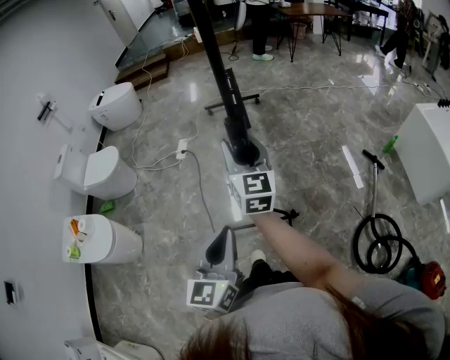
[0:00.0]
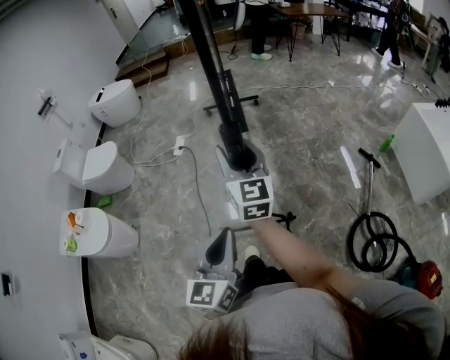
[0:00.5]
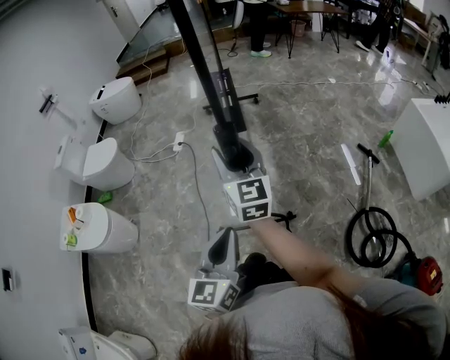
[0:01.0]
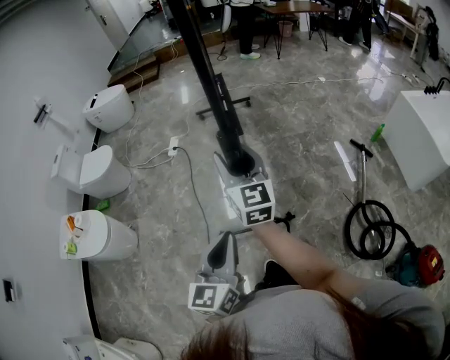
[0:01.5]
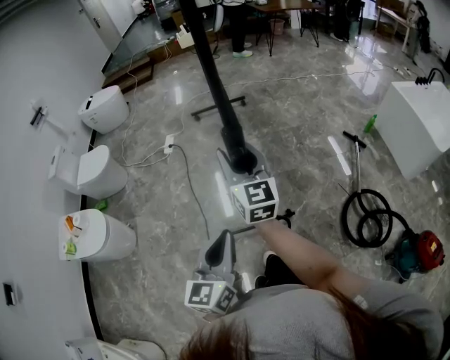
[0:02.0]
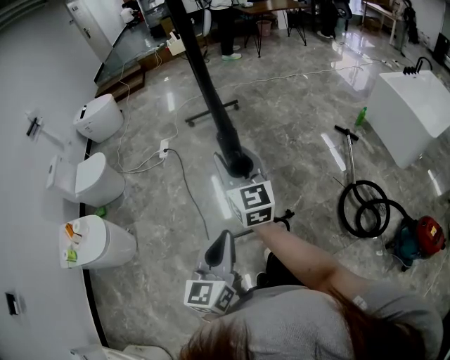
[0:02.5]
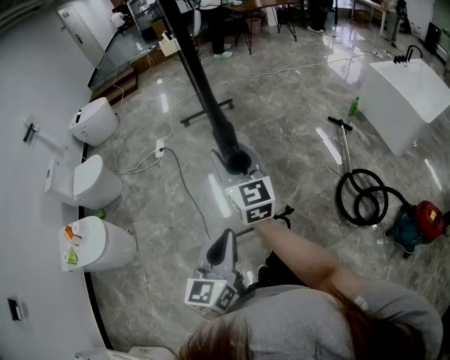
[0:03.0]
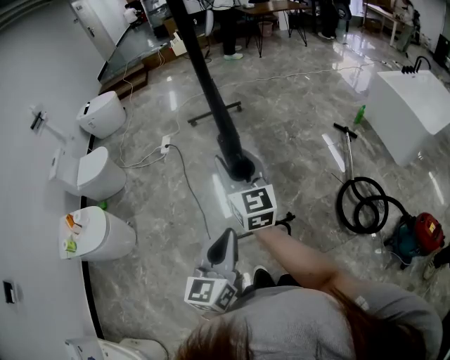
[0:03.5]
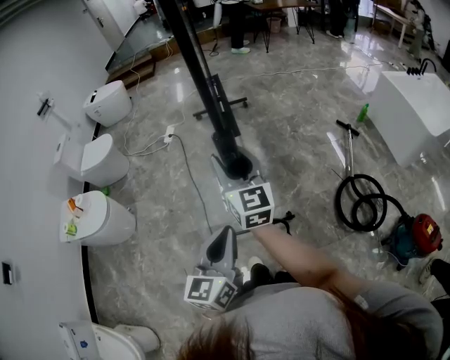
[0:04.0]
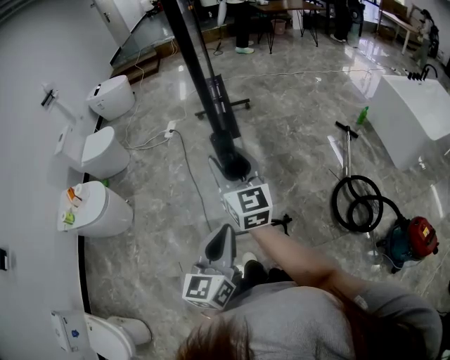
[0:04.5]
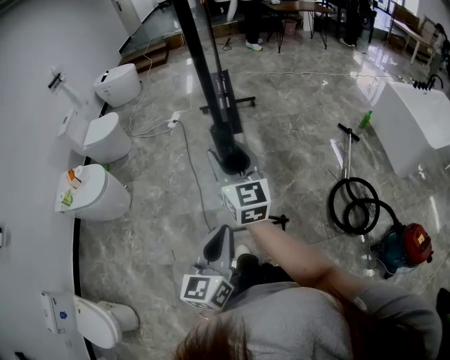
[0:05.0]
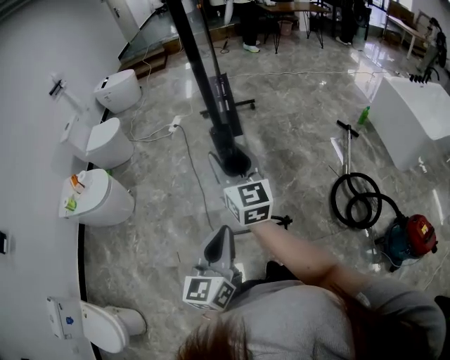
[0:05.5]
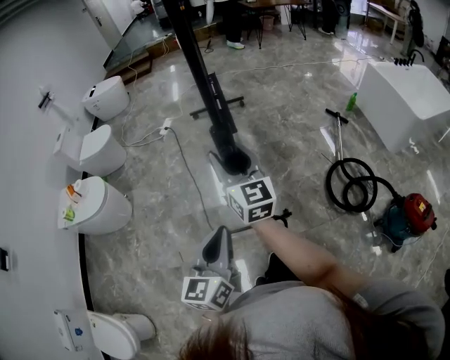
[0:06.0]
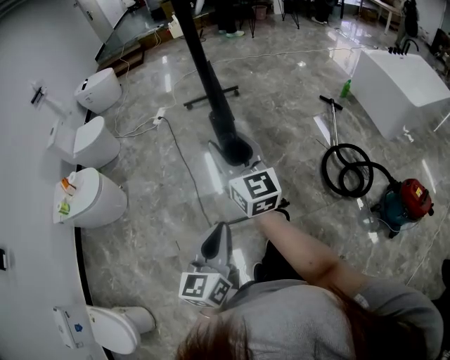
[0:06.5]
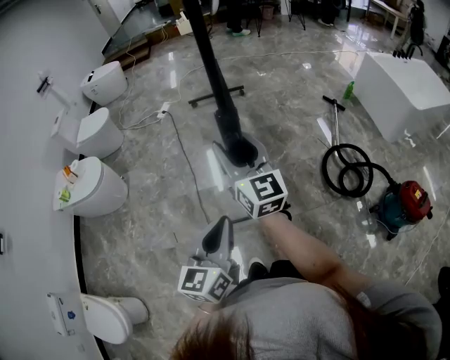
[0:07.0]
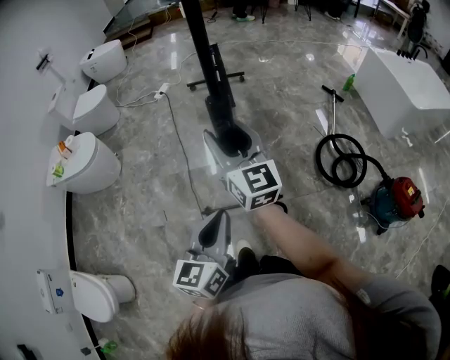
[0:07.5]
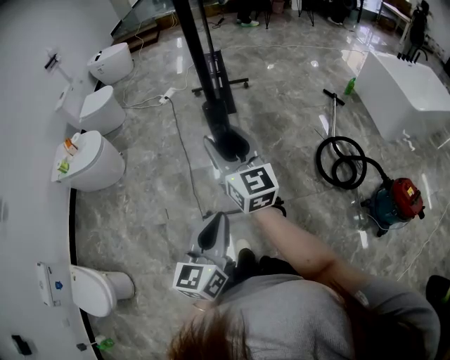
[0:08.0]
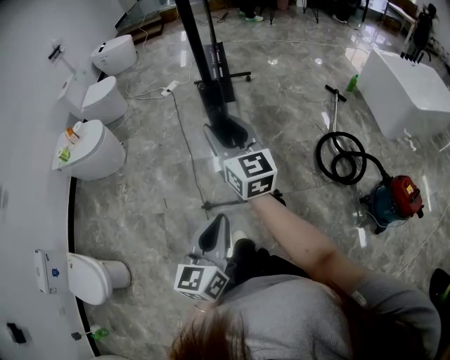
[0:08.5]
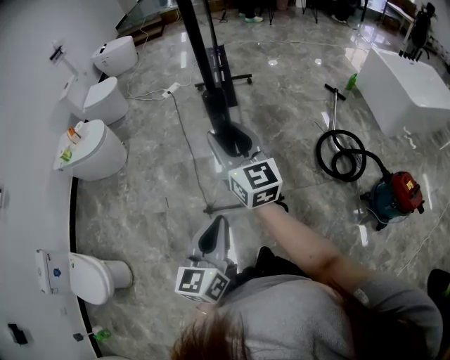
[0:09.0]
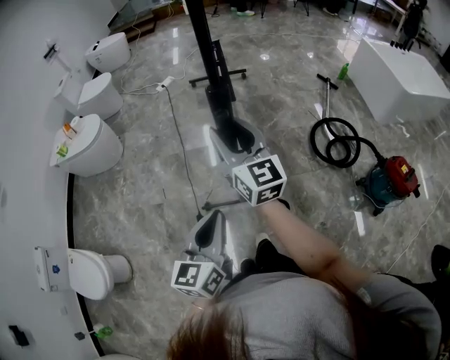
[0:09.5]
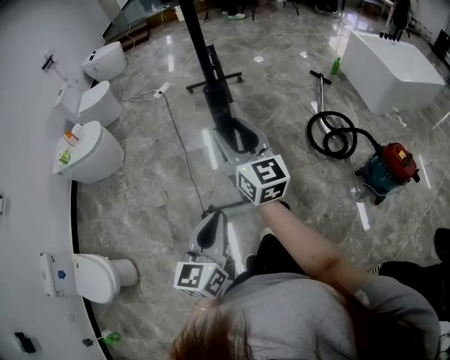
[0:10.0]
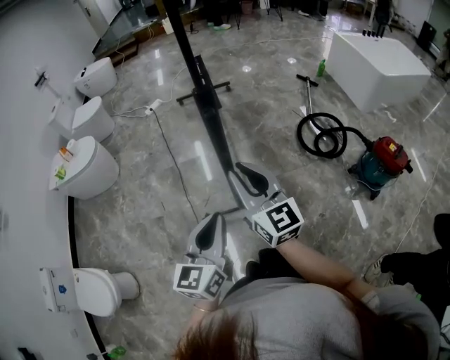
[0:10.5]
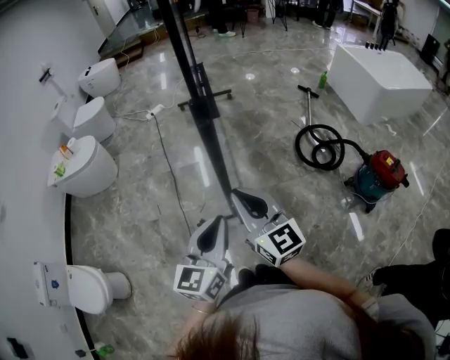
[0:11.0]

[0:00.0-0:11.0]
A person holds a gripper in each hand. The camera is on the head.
0:00.0 to 0:02.0: Both grippers travel together backward, some 15 cm.
0:02.0 to 0:03.5: The two grippers go some 10 cm backward.
0:03.5 to 0:05.5: Both grippers move backward, roughly 15 cm.
0:05.5 to 0:07.5: Both grippers travel together backward, some 15 cm.
0:07.5 to 0:09.0: Both grippers move backward, about 10 cm.
0:09.0 to 0:11.0: The right gripper is displaced backward by some 25 cm, and closes, while the left gripper heads backward, covering approximately 10 cm.

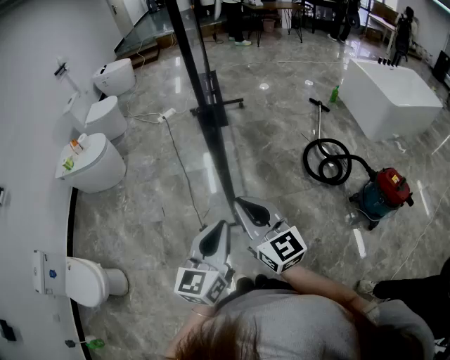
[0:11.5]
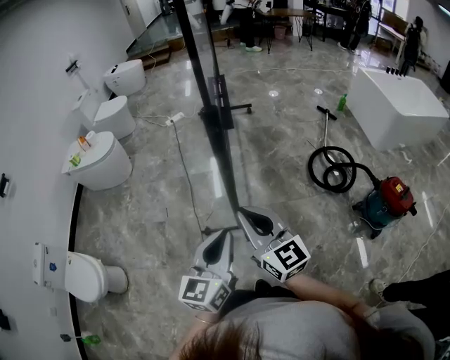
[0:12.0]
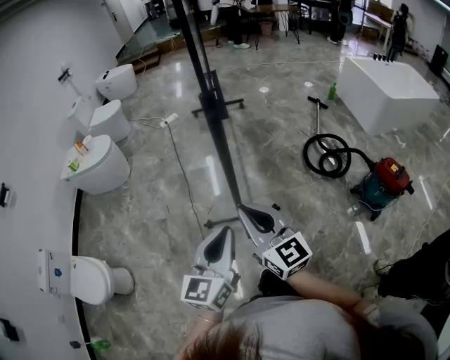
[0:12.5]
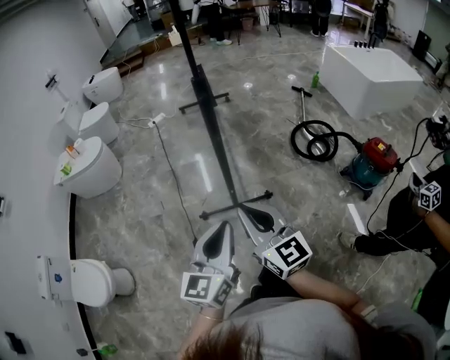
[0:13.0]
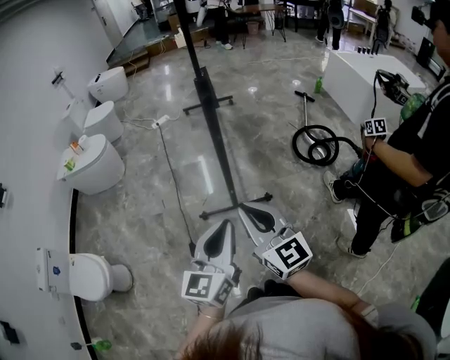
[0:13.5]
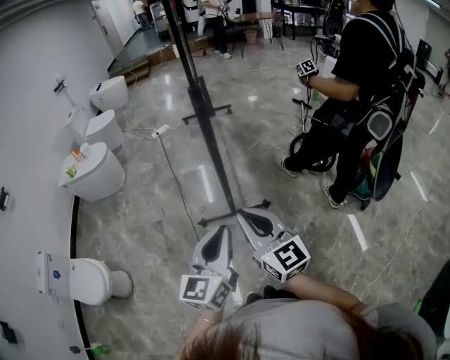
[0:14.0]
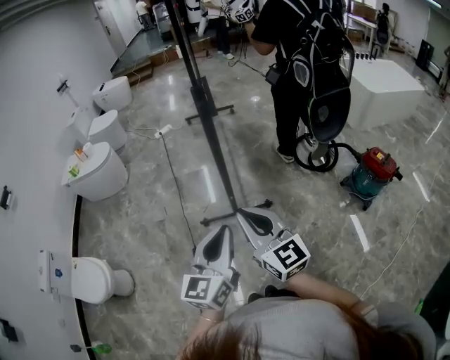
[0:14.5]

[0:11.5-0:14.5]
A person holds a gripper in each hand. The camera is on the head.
0:11.5 to 0:13.0: The grippers both shift backward by about 15 cm.
0:13.0 to 0:14.5: The grippers move only a little.

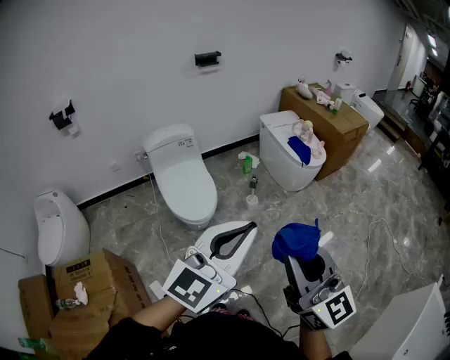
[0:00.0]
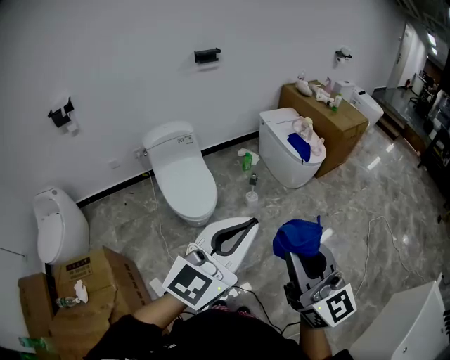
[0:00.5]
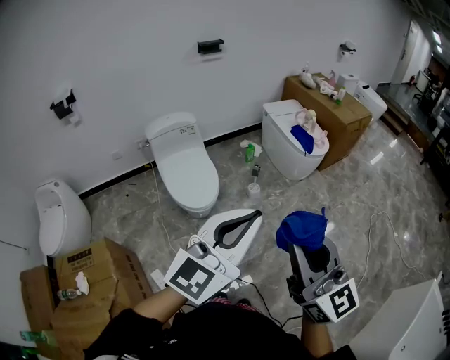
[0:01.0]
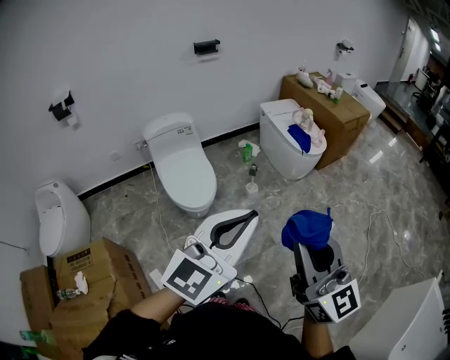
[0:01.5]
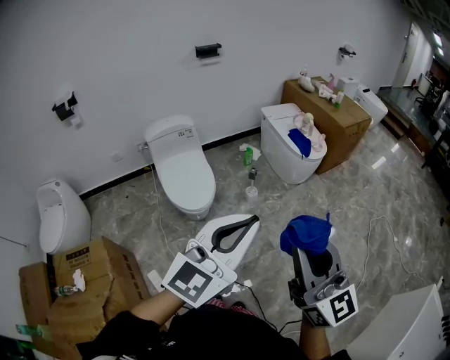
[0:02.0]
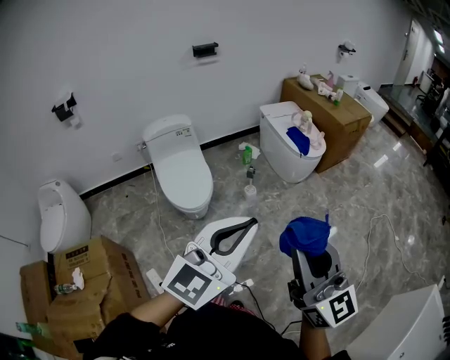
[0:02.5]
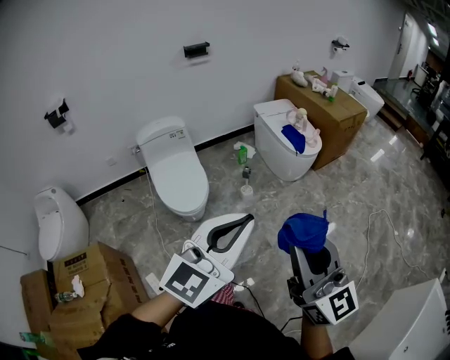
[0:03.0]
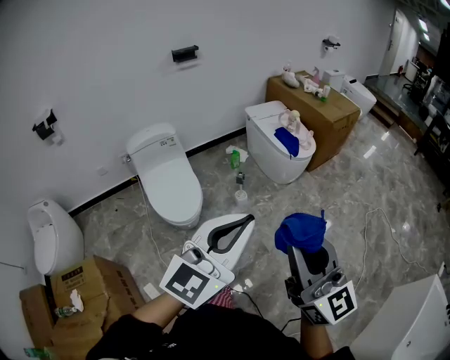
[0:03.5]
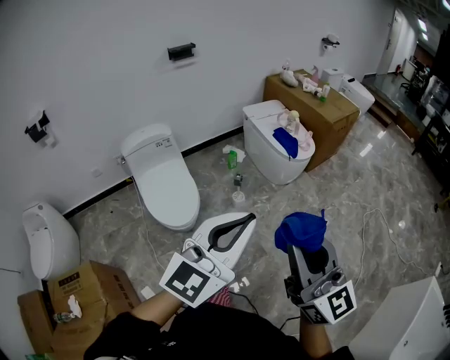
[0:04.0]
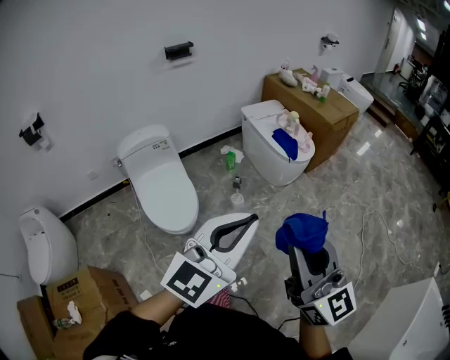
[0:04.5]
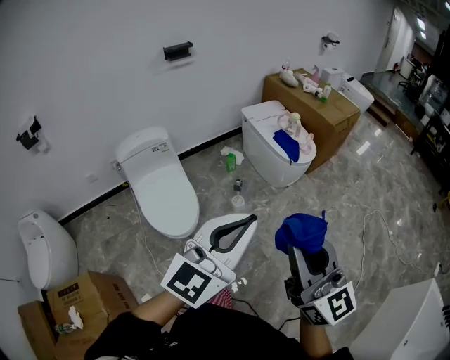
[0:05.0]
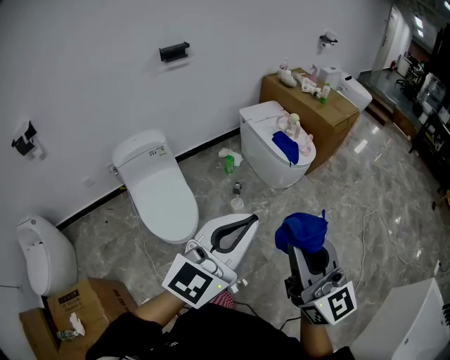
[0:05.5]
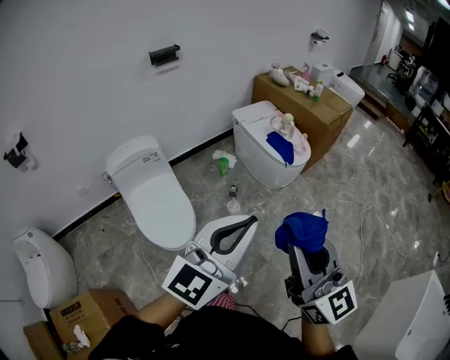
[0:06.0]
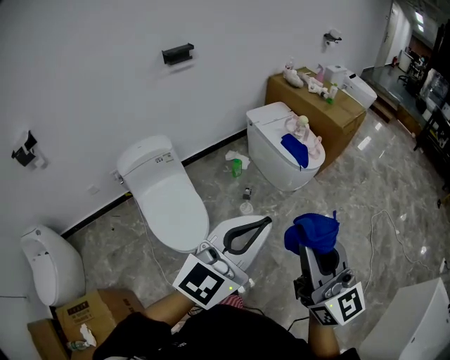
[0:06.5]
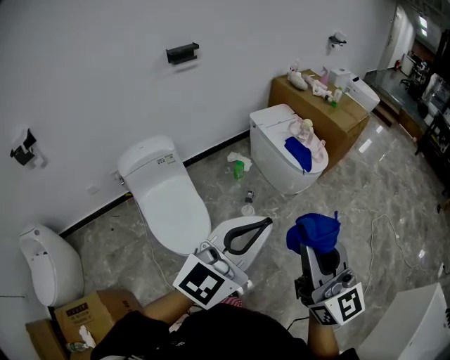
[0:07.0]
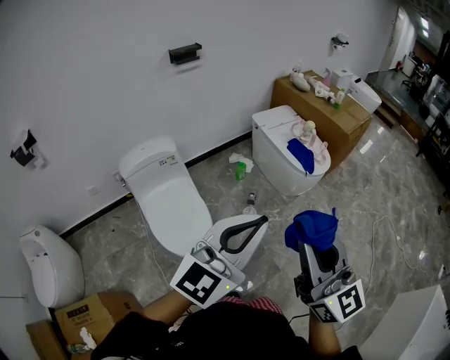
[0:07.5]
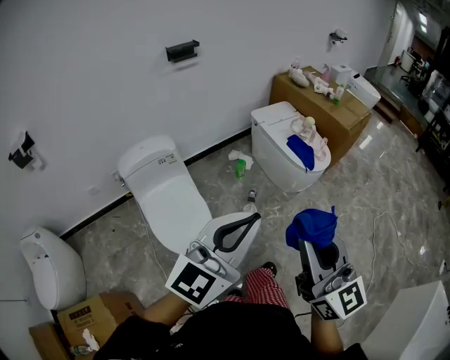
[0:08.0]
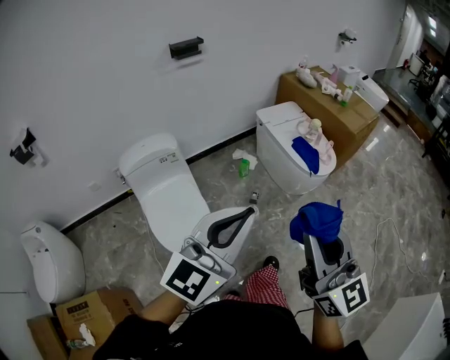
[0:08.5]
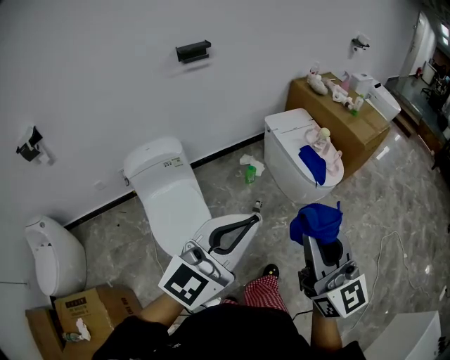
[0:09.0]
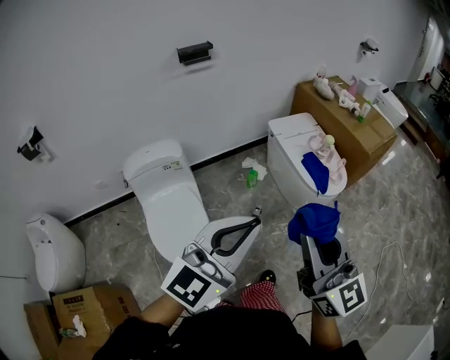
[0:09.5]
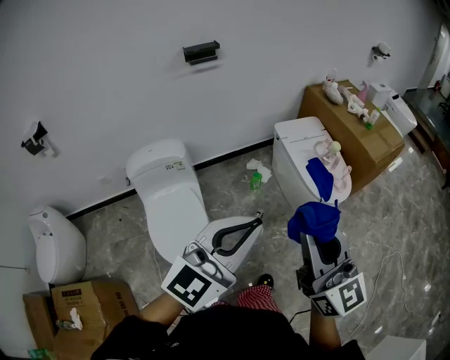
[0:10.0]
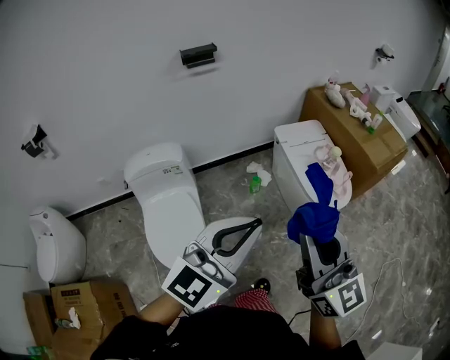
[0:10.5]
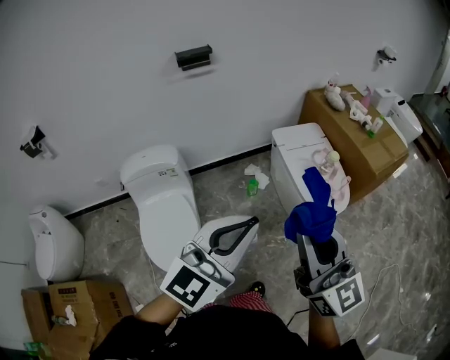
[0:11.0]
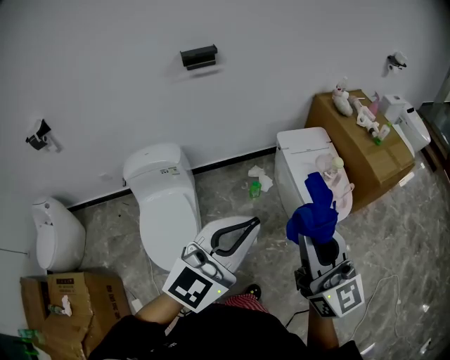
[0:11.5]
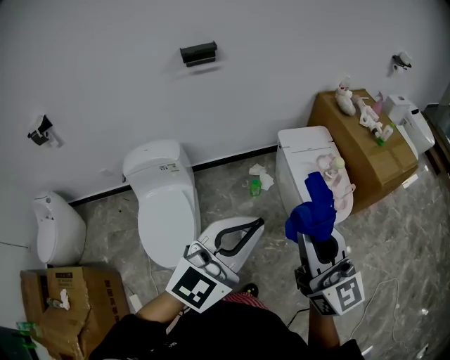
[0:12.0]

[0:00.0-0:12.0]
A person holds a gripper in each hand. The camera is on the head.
0:00.0 to 0:02.0: The right gripper moves to the right, about 5 cm.
0:02.0 to 0:04.0: The grippers both shift forward by about 10 cm.
0:04.0 to 0:06.0: The right gripper goes about 10 cm forward and to the left; the left gripper moves forward, some 10 cm.
0:06.0 to 0:08.0: The two grippers go about 10 cm to the left and forward.
0:08.0 to 0:10.0: The two grippers go some 15 cm forward.
0:10.0 to 0:12.0: The right gripper shifts approximately 15 cm forward and to the right; the left gripper goes some 15 cm to the right and forward.

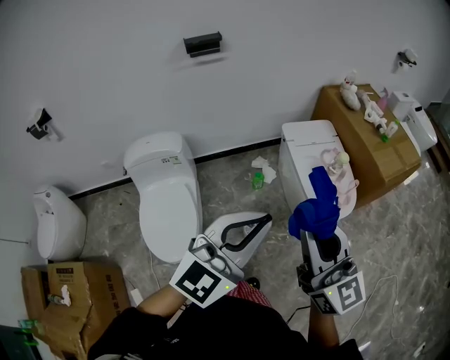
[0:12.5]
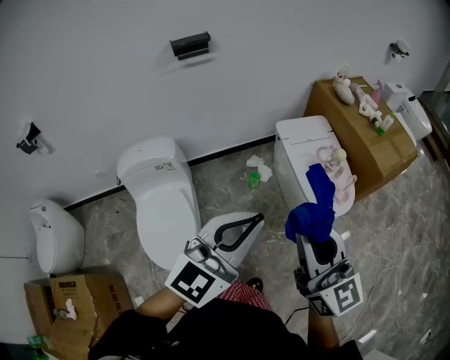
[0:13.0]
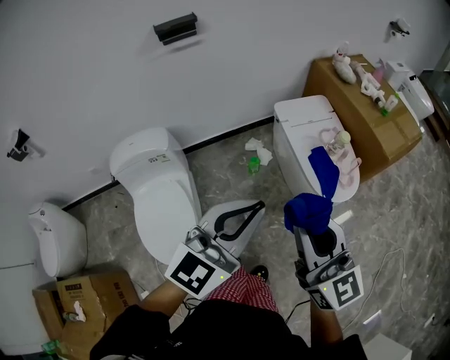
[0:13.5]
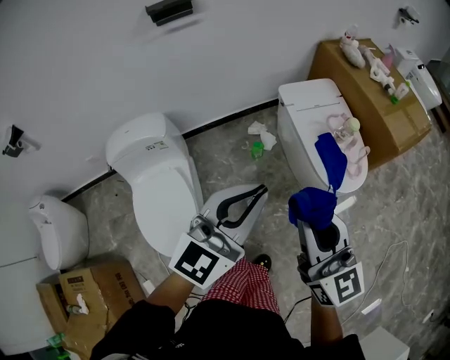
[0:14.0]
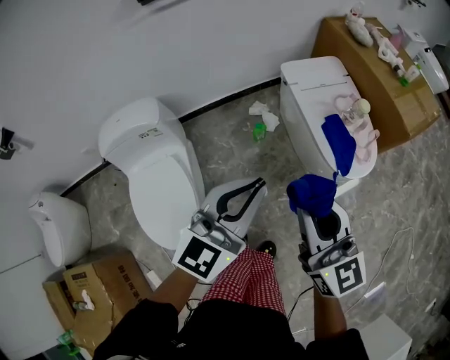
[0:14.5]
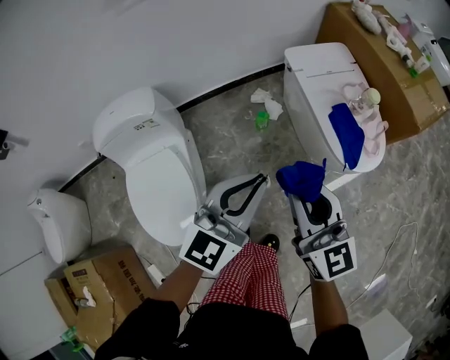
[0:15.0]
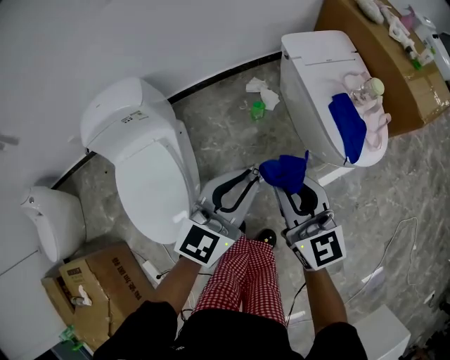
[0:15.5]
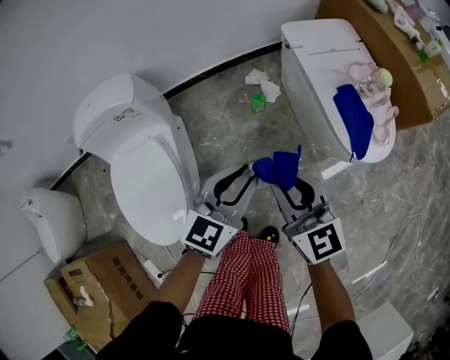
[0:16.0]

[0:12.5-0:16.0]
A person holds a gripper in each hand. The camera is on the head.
0:12.5 to 0:14.5: The two grippers go approximately 20 cm downward and forward.
0:14.5 to 0:16.0: The grippers both shift downward by roughly 20 cm.
